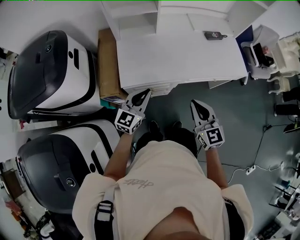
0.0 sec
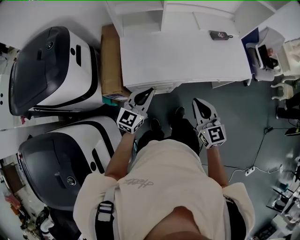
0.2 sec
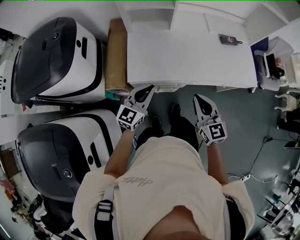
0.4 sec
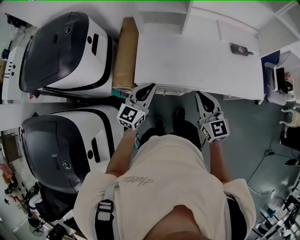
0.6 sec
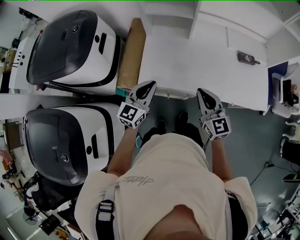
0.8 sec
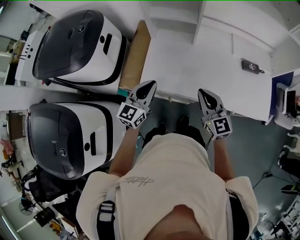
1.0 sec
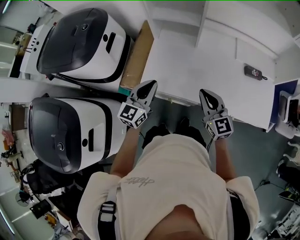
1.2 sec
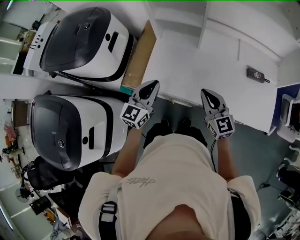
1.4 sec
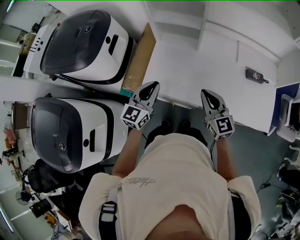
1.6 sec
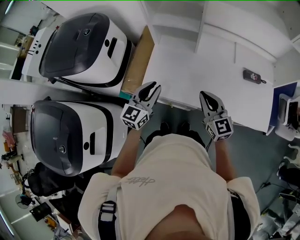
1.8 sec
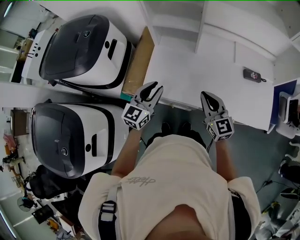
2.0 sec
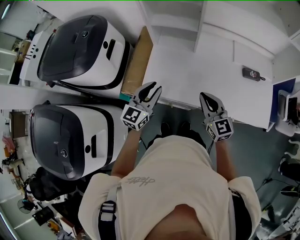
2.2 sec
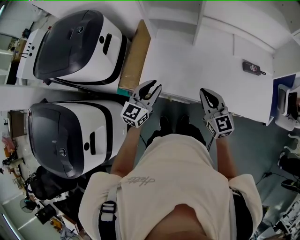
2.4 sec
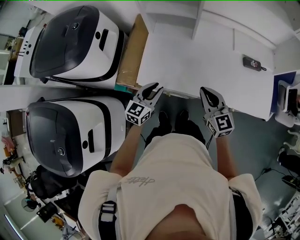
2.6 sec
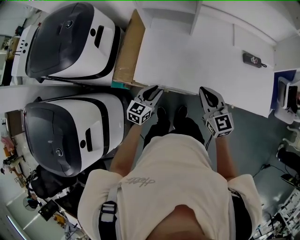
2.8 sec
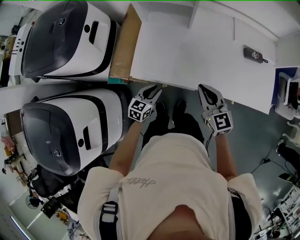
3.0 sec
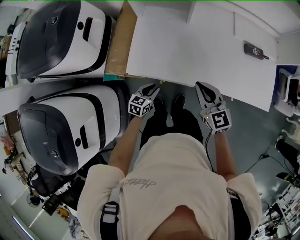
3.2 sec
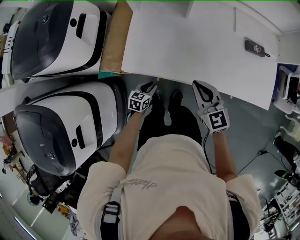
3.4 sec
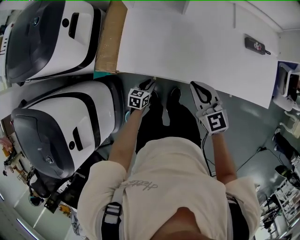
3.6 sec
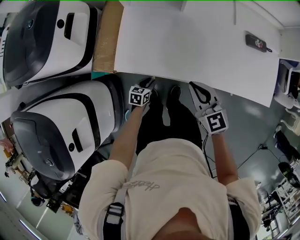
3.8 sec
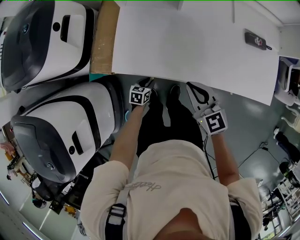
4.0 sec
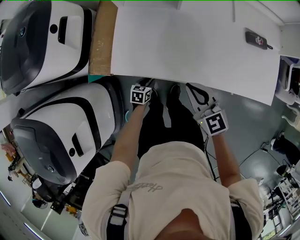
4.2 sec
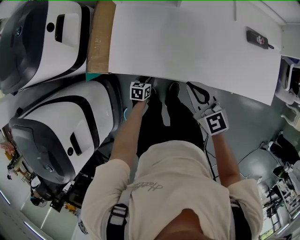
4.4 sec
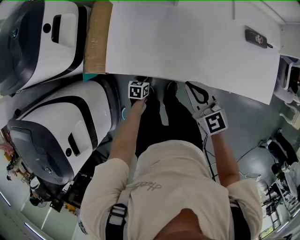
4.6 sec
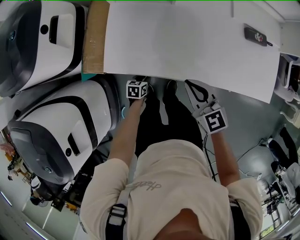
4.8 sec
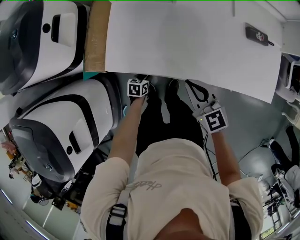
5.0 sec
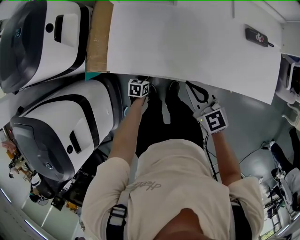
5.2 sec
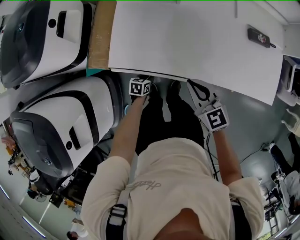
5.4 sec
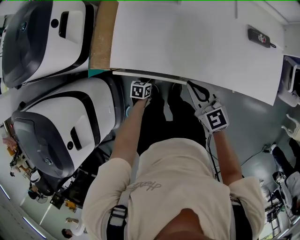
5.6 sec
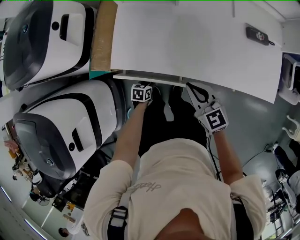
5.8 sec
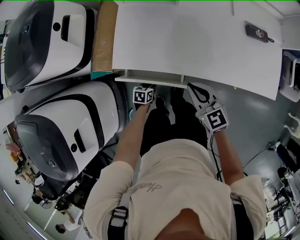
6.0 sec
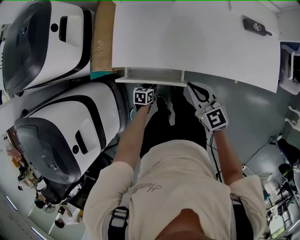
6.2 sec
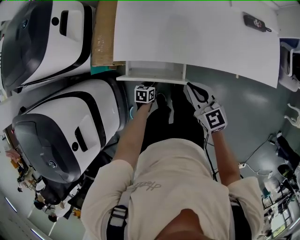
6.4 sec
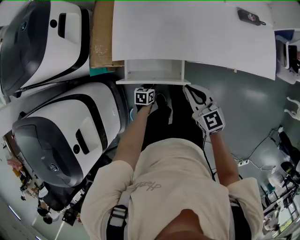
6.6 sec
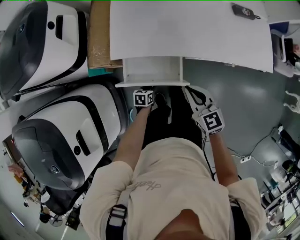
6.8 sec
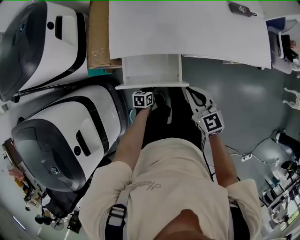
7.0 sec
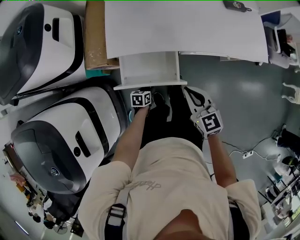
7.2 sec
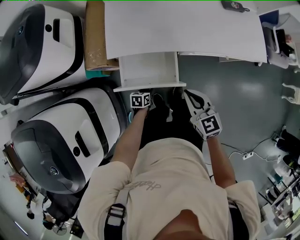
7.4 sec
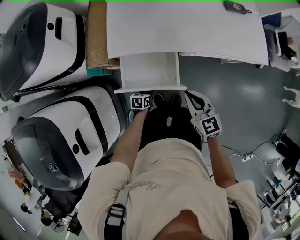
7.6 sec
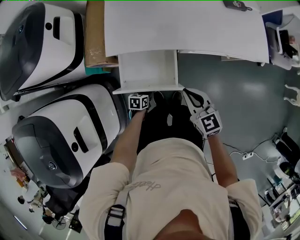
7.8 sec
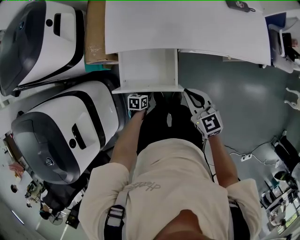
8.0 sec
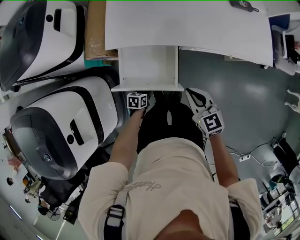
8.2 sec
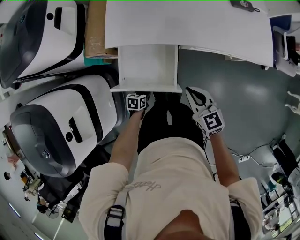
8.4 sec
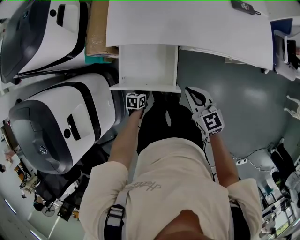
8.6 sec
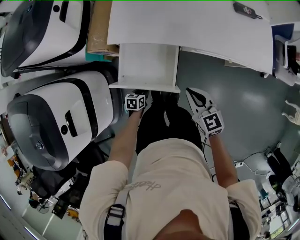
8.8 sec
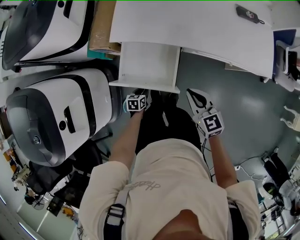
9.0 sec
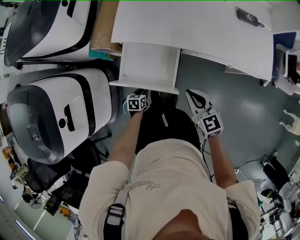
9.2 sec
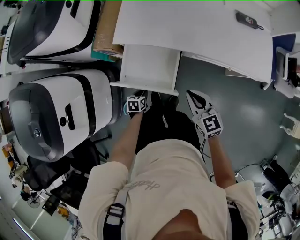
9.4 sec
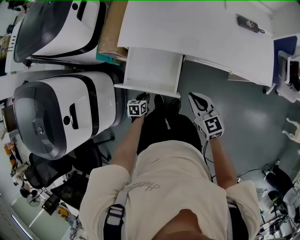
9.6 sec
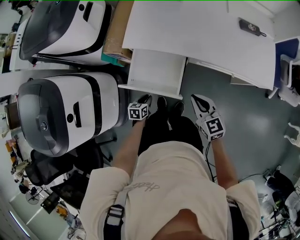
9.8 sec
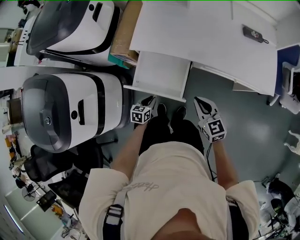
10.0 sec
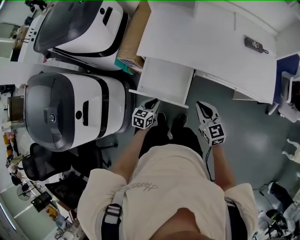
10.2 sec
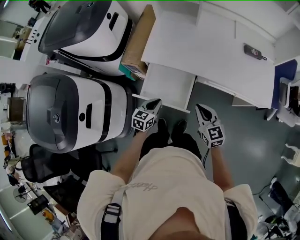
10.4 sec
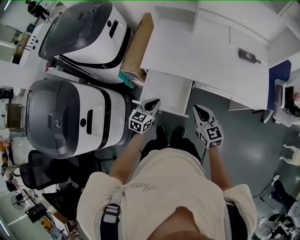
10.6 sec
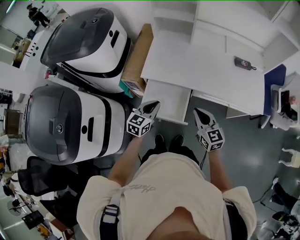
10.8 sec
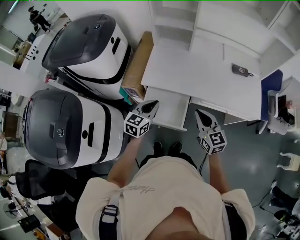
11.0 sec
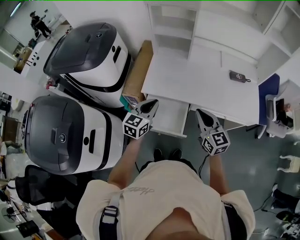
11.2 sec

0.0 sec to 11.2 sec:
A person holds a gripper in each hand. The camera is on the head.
0.0 sec to 1.6 sec: The left gripper moves approximately 10 cm, and changes its angle by roughly 30 degrees. The right gripper changes place by approximately 20 cm, and rotates some 30 degrees.
1.6 sec to 3.2 sec: The left gripper shifts roughly 30 cm downward, points its fingers approximately 30 degrees further downward, and opens its fingers, while the right gripper moves downward, about 10 cm.
3.2 sec to 4.8 sec: The right gripper heads downward, covering roughly 5 cm. Meanwhile the left gripper goes roughly 15 cm downward, and changes its angle by approximately 20 degrees.
4.8 sec to 6.4 sec: Both grippers move backward, roughly 10 cm.
6.4 sec to 8.0 sec: Both grippers move backward, roughly 10 cm.
8.0 sec to 9.6 sec: The left gripper shifts by approximately 5 cm.
9.6 sec to 11.2 sec: The right gripper heads upward, covering roughly 20 cm; the left gripper is displaced upward by roughly 40 cm, and angles its fingers upward, by about 40 degrees.

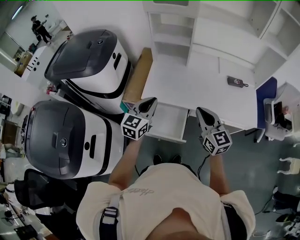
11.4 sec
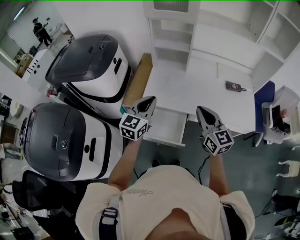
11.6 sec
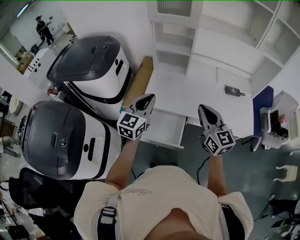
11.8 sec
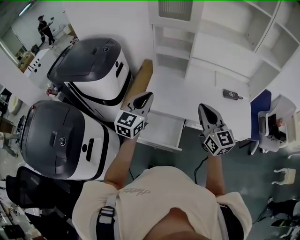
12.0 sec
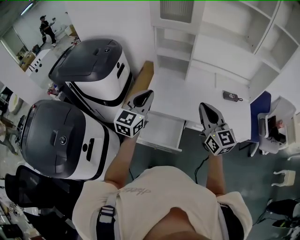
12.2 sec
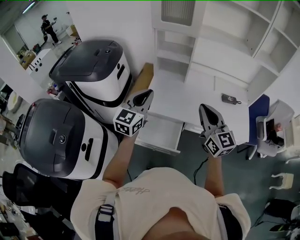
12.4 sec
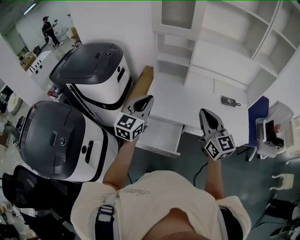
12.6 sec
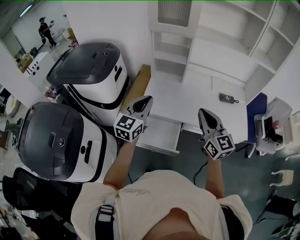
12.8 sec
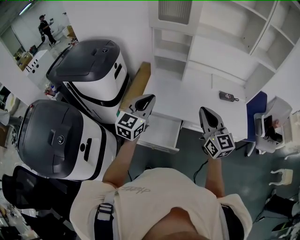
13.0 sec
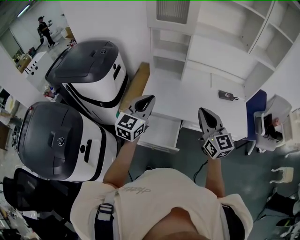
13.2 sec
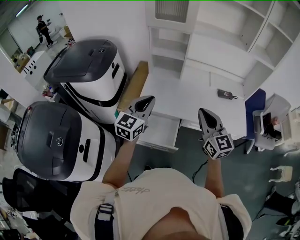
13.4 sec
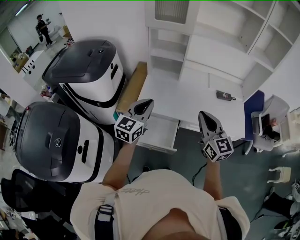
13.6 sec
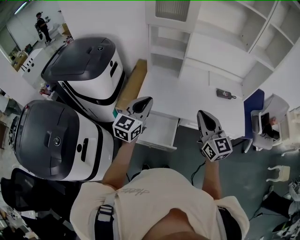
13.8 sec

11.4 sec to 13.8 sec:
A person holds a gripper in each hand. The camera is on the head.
11.4 sec to 12.6 sec: The grippers both shift upward by approximately 10 cm.
12.6 sec to 13.8 sec: The grippers make only small movements.

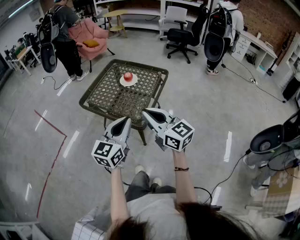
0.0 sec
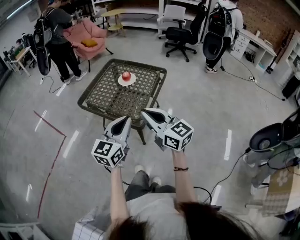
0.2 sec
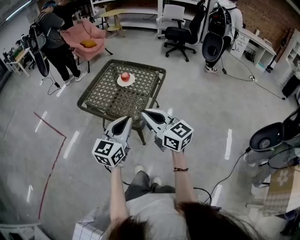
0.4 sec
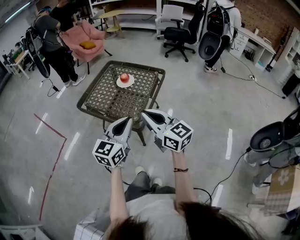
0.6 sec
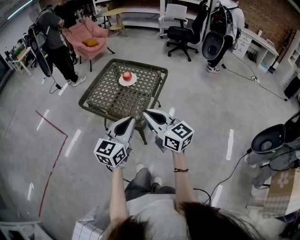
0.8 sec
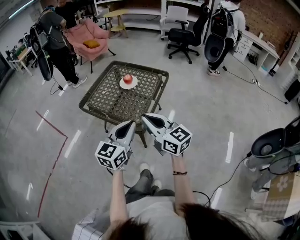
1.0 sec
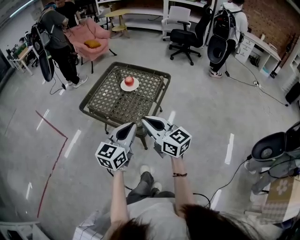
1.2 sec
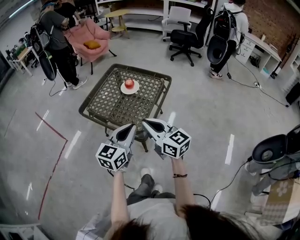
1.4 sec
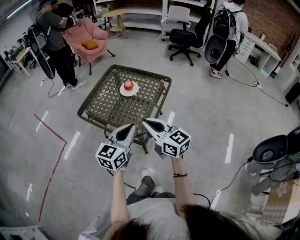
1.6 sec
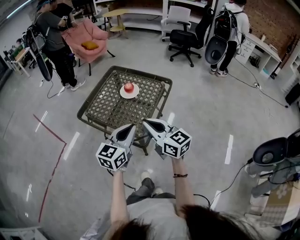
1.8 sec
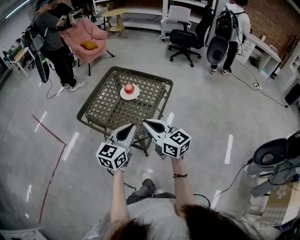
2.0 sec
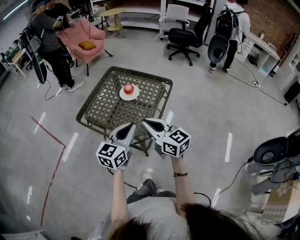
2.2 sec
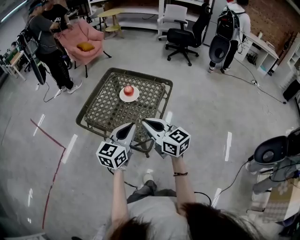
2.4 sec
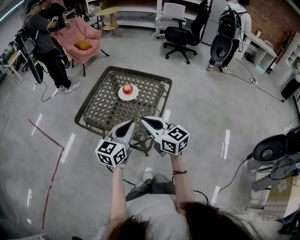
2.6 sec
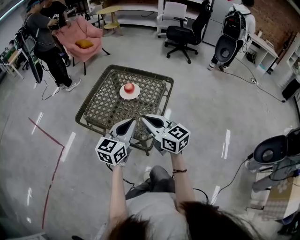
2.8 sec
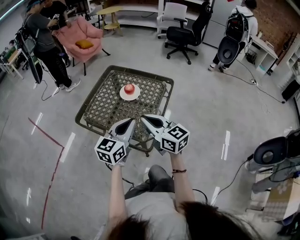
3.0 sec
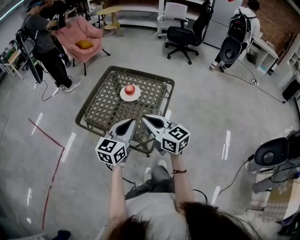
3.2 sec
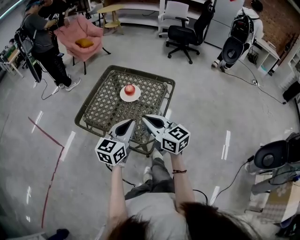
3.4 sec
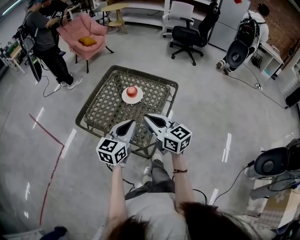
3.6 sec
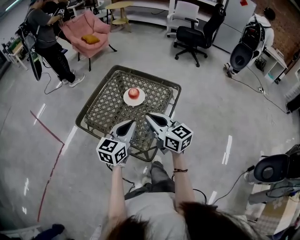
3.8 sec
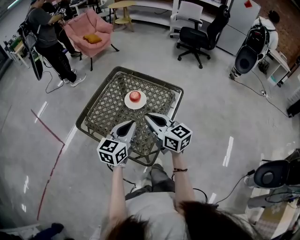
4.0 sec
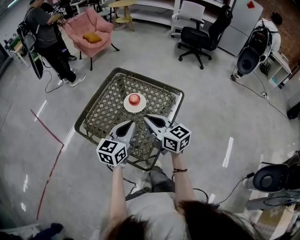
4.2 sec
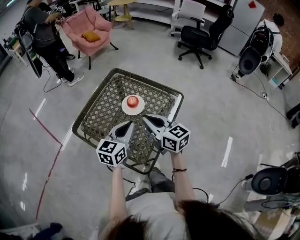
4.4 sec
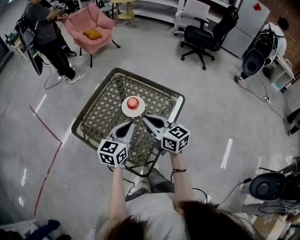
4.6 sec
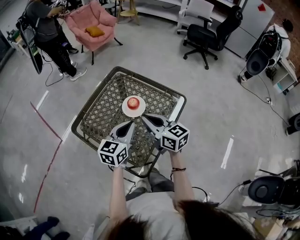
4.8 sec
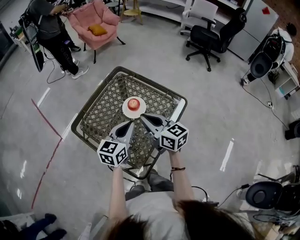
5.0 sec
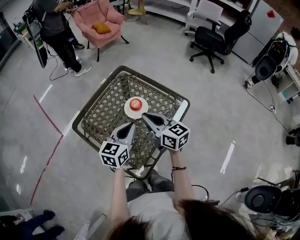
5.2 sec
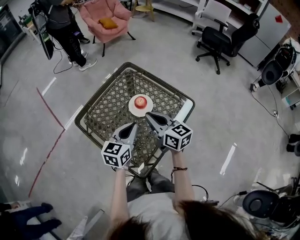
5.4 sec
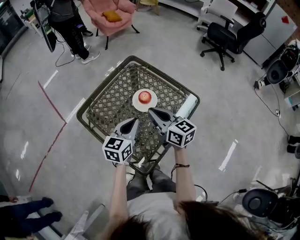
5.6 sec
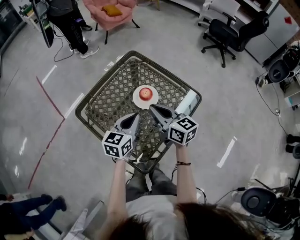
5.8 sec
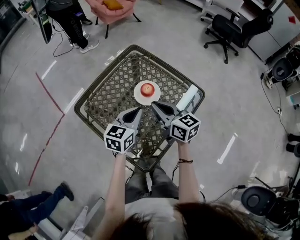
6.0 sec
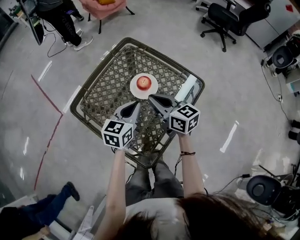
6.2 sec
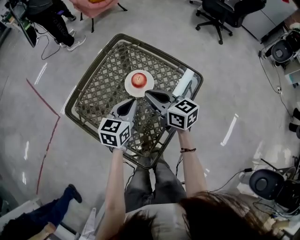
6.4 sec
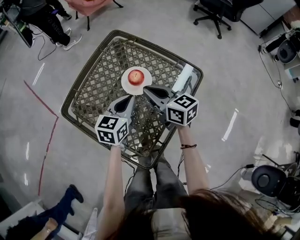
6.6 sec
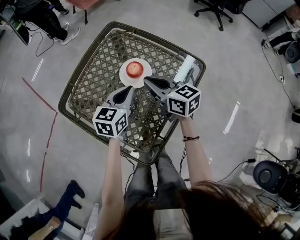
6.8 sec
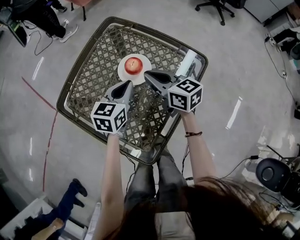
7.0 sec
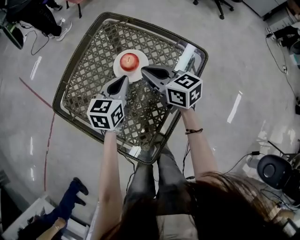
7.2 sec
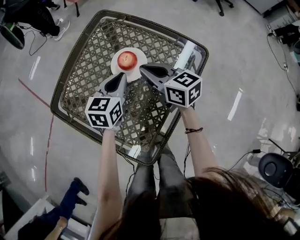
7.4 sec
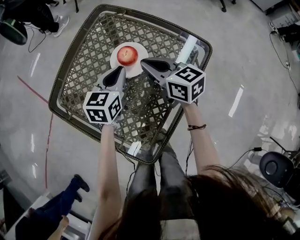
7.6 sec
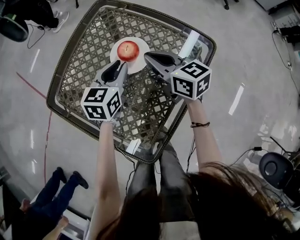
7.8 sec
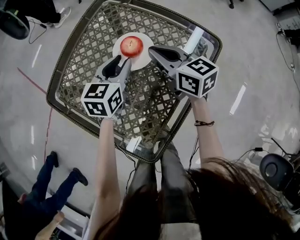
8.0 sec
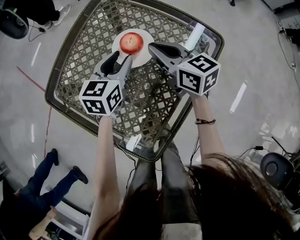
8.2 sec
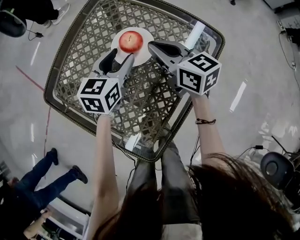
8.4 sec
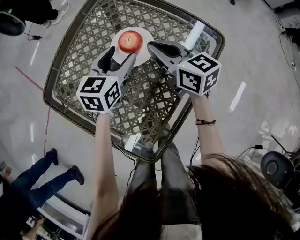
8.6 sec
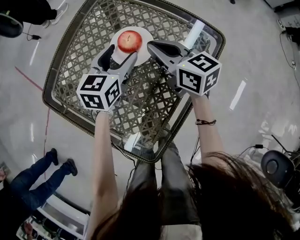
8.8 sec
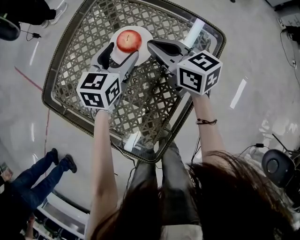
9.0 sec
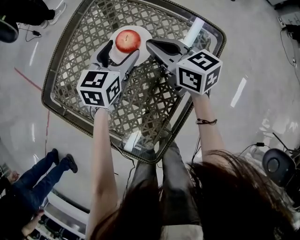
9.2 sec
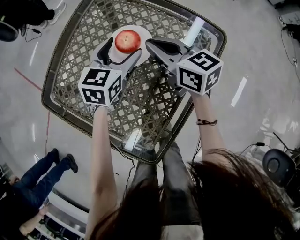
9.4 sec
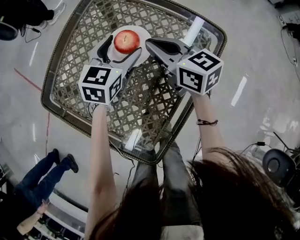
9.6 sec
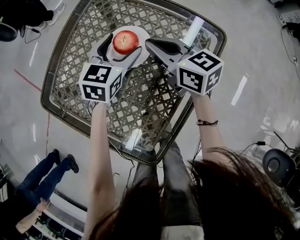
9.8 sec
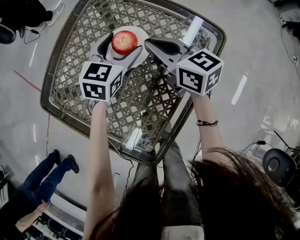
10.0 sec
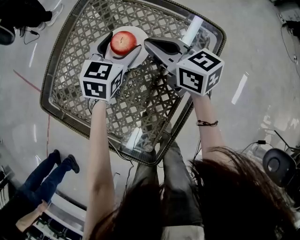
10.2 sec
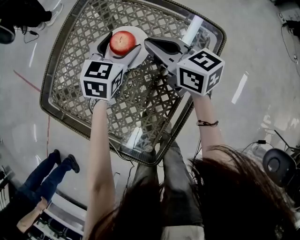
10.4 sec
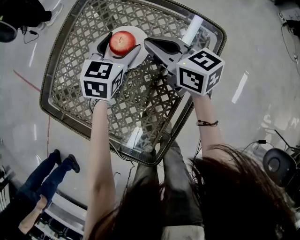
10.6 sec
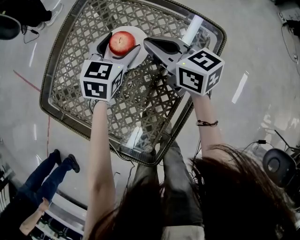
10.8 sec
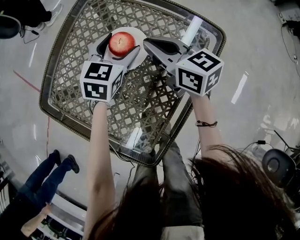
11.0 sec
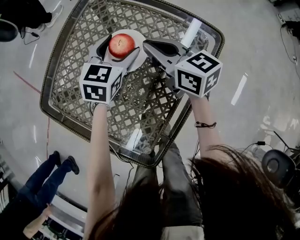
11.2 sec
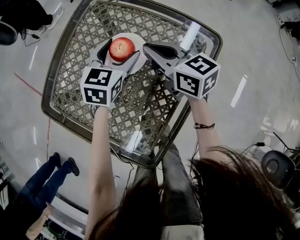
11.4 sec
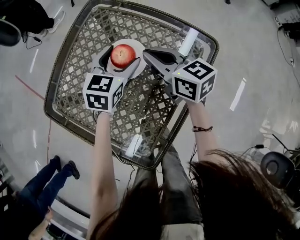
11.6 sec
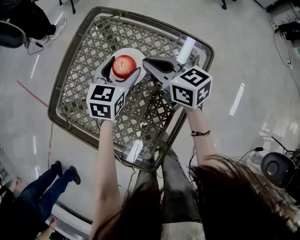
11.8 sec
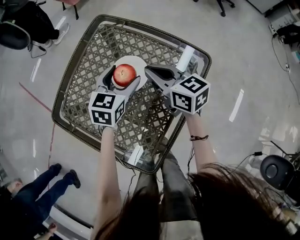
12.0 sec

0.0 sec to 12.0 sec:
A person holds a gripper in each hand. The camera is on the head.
0.0 sec to 1.6 sec: The two grippers go roughly 10 cm forward.
1.6 sec to 3.0 sec: The grippers both shift forward by some 10 cm.
3.0 sec to 4.4 sec: Both grippers move forward, some 15 cm.
4.4 sec to 6.0 sec: Both grippers travel together forward and downward, about 10 cm.
6.0 sec to 7.6 sec: Both grippers travel together downward and forward, about 15 cm.
7.6 sec to 9.0 sec: The left gripper opens.
9.0 sec to 10.4 sec: The grippers move only a little.
10.4 sec to 12.0 sec: The left gripper is displaced upward by some 5 cm.
